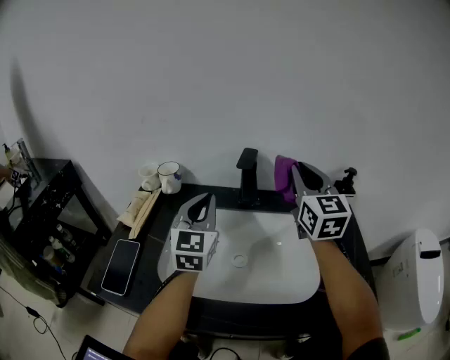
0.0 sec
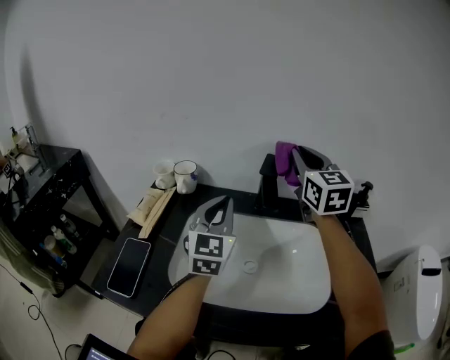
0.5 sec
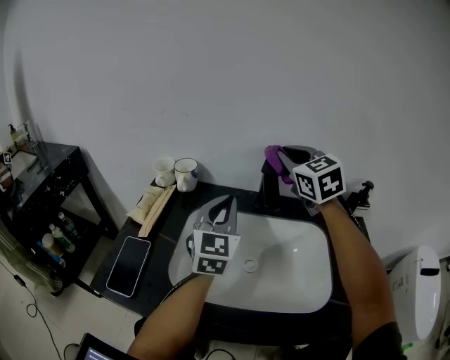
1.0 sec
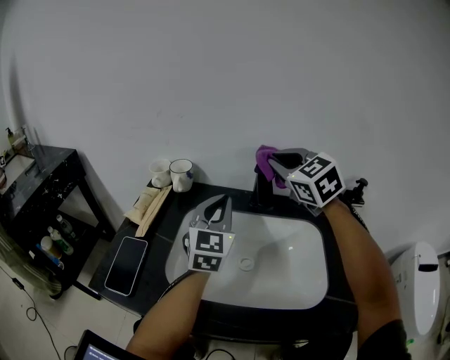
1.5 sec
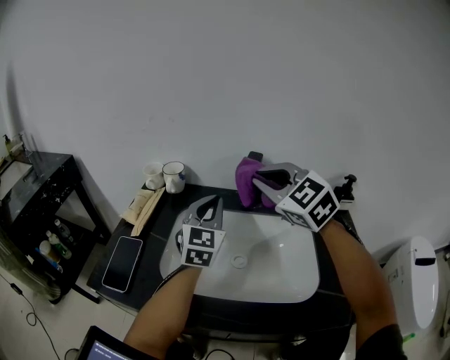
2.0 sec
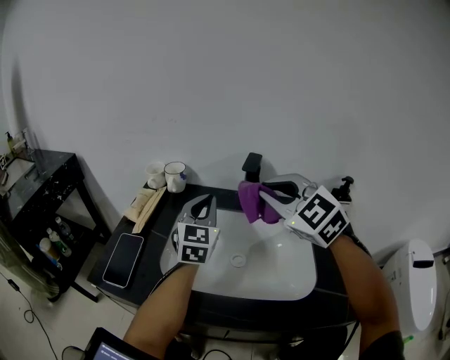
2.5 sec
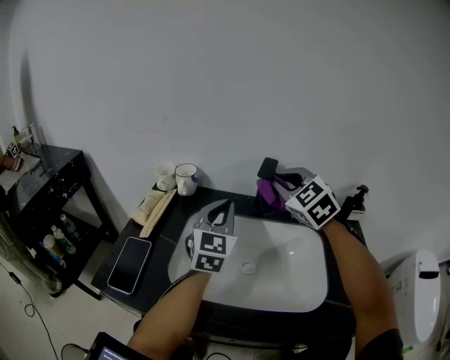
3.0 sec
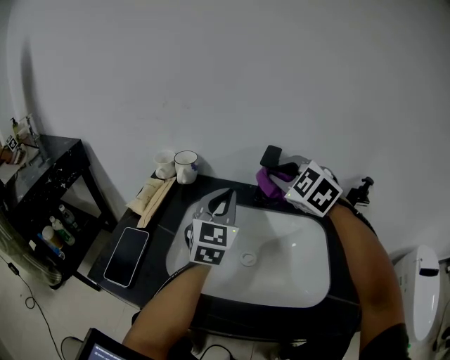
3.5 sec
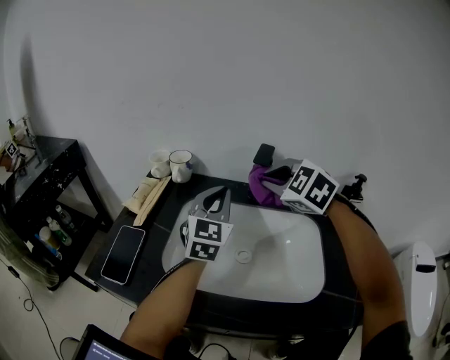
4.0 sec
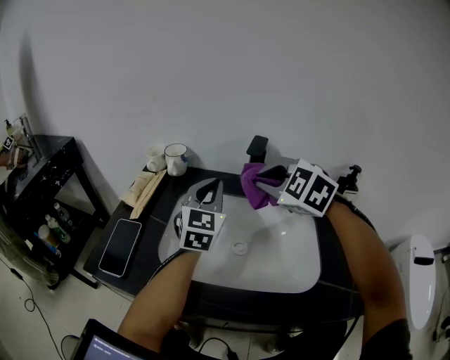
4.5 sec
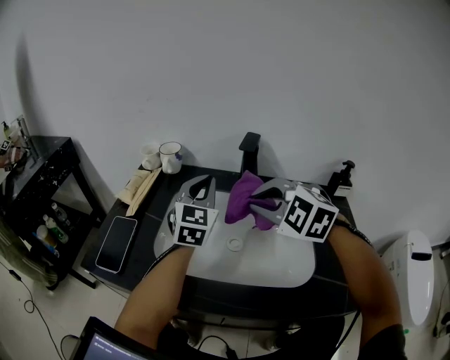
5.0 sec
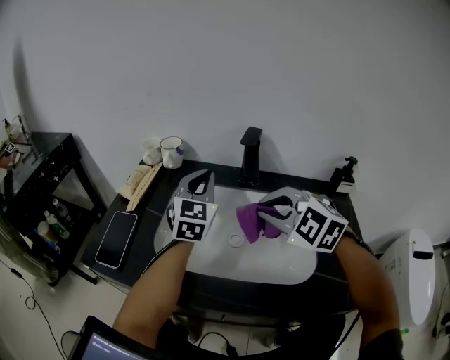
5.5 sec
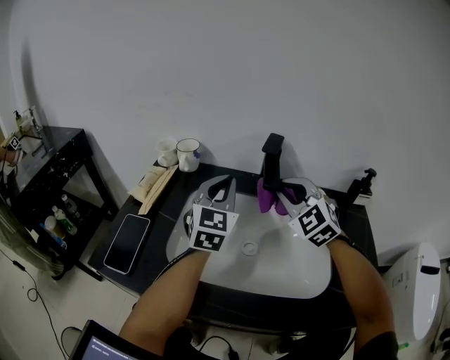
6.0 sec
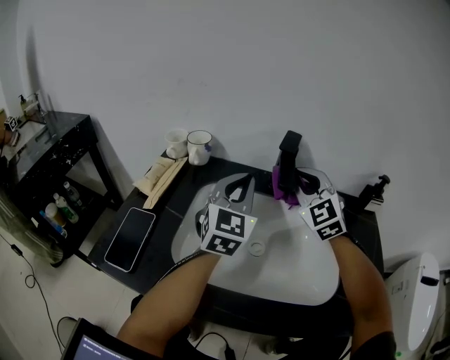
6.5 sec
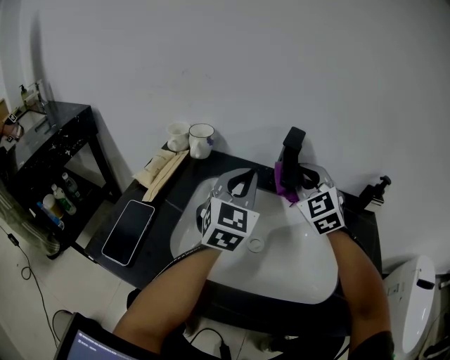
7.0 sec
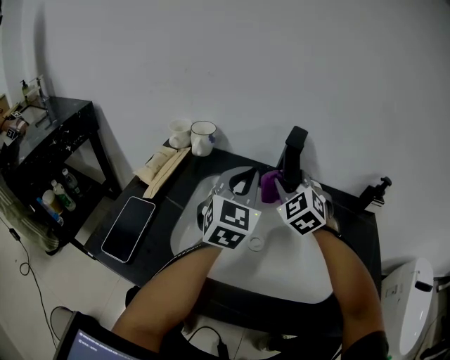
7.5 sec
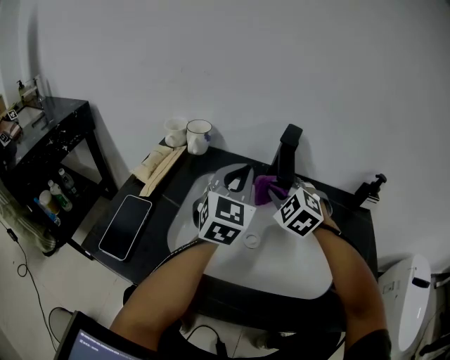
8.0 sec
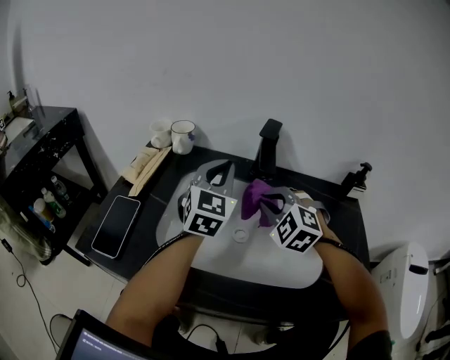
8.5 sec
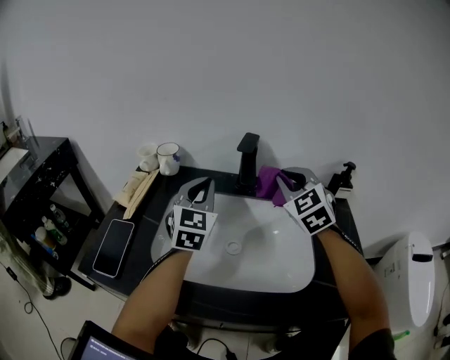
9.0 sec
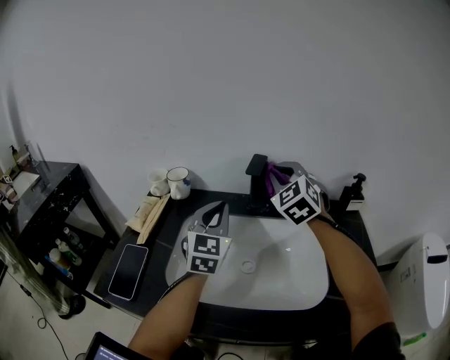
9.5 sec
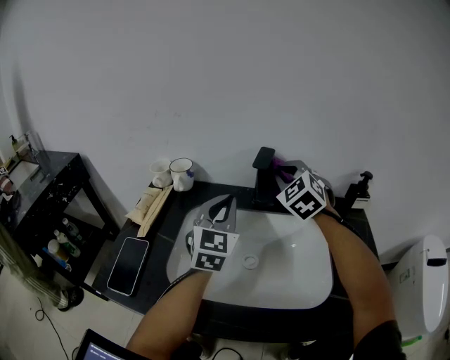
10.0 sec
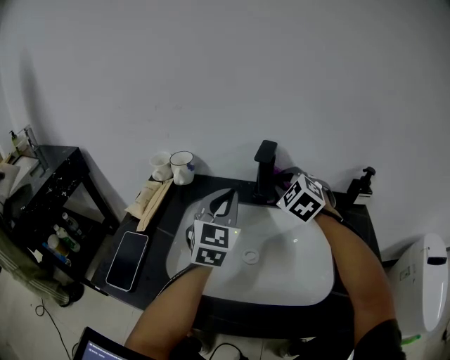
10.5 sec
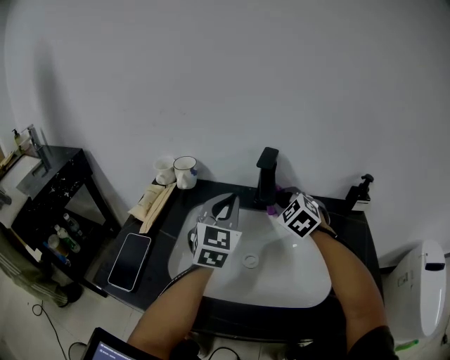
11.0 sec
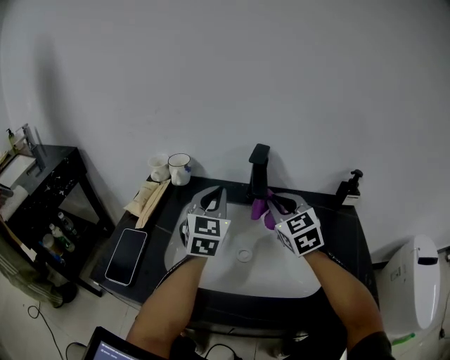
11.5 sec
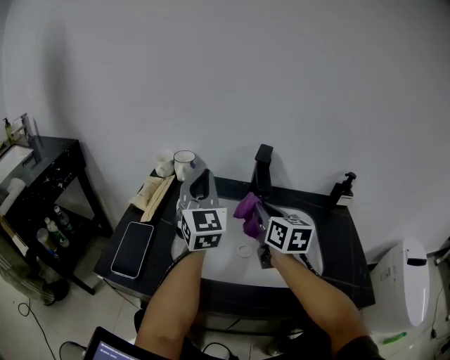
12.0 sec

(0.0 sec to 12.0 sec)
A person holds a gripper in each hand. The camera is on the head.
0.0 sec - 2.0 sec: The right gripper heads to the left, covering about 15 cm, and changes its angle by about 40 degrees.
2.0 sec - 4.0 sec: The right gripper heads downward, covering some 5 cm, moves some 5 cm forward and comes back, and turns by some 20 degrees.
4.0 sec - 6.0 sec: The right gripper goes backward and returns, about 10 cm each way, and swivels about 20 degrees.
6.0 sec - 8.0 sec: The right gripper moves downward, some 10 cm, and swivels some 20 degrees.
8.0 sec - 10.0 sec: The right gripper shifts some 15 cm upward, forward and to the right, and rotates approximately 20 degrees.
10.0 sec - 12.0 sec: The left gripper shifts some 10 cm to the left and upward. The right gripper moves backward and downward, approximately 10 cm, and rotates around the line of its fingers by approximately 60 degrees, clockwise from behind.

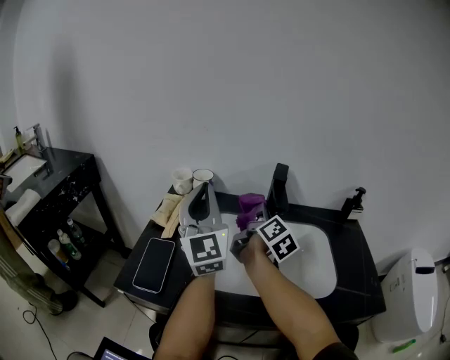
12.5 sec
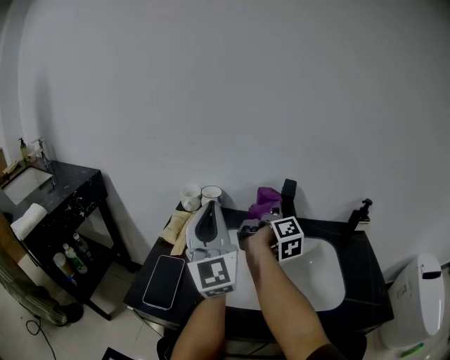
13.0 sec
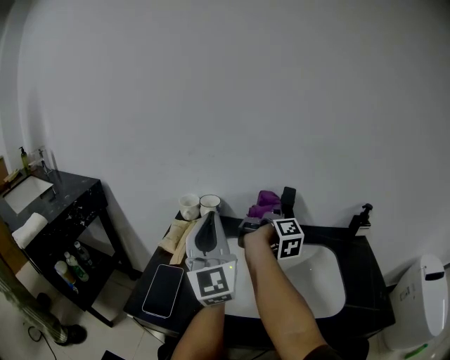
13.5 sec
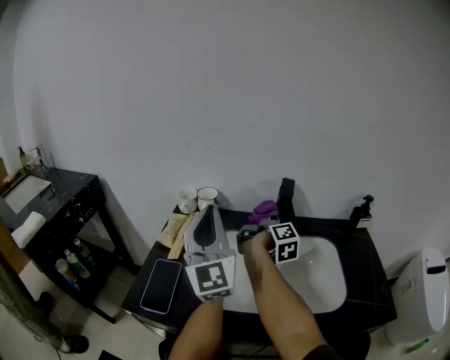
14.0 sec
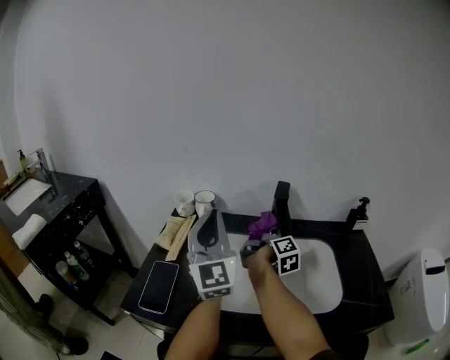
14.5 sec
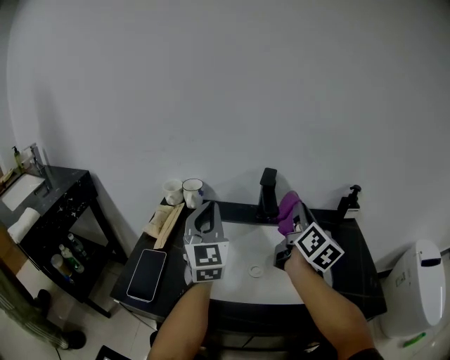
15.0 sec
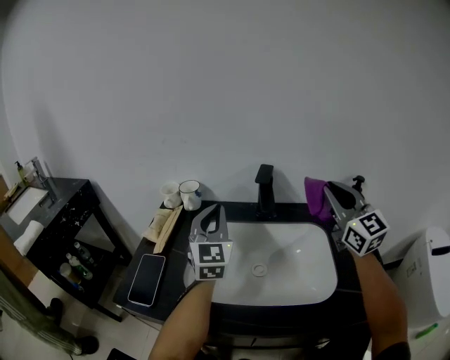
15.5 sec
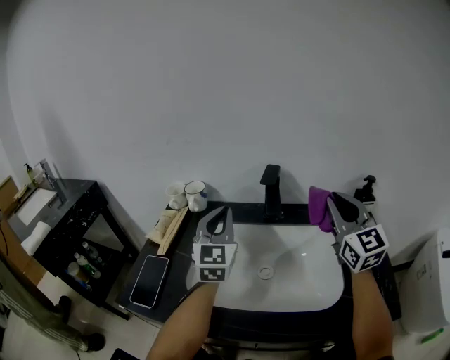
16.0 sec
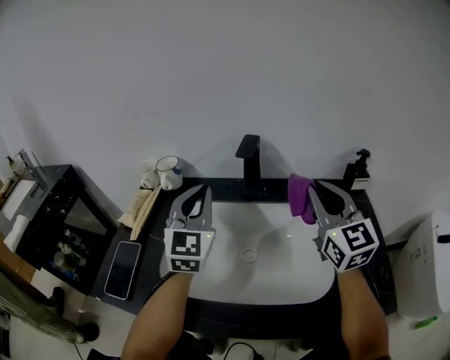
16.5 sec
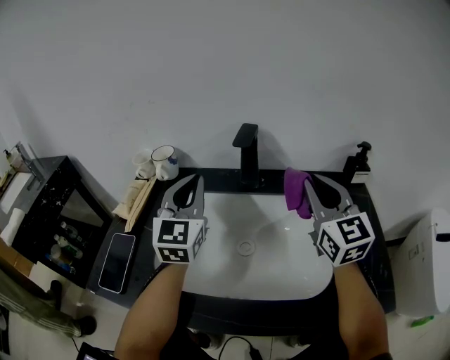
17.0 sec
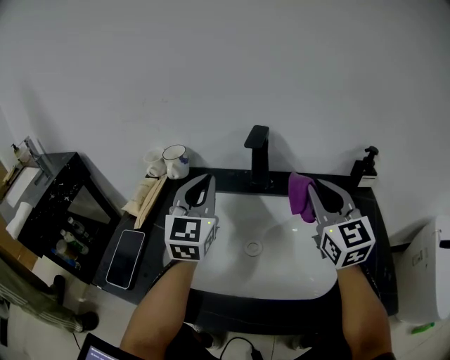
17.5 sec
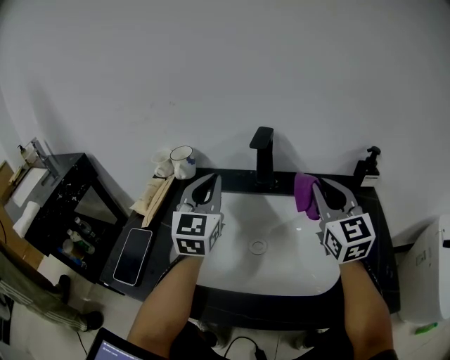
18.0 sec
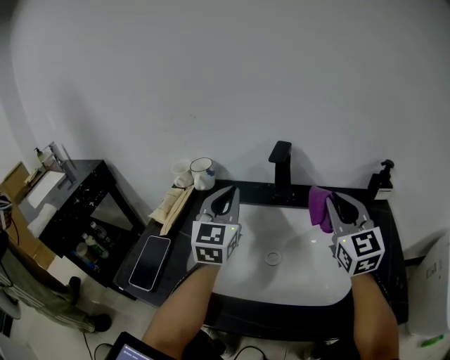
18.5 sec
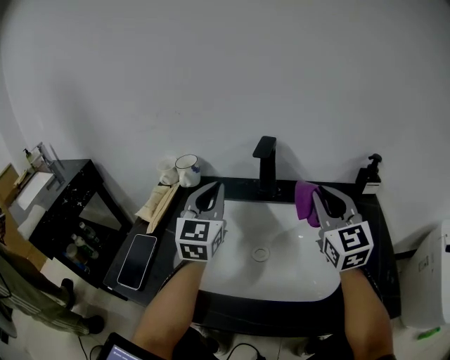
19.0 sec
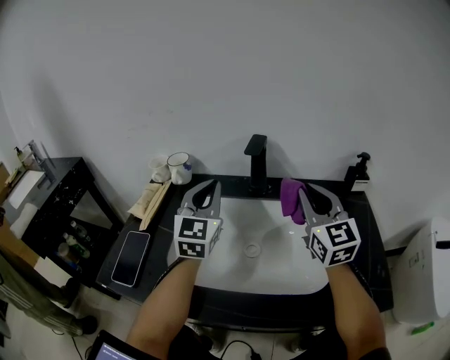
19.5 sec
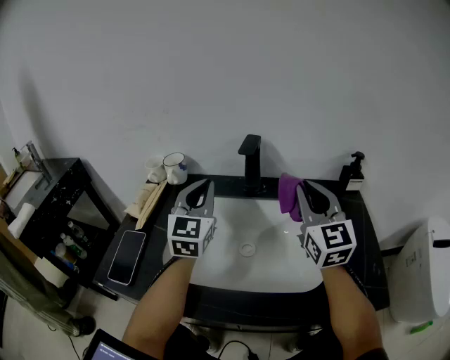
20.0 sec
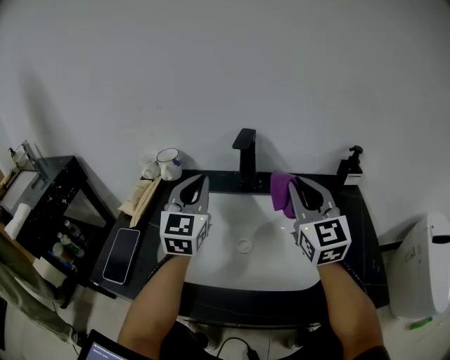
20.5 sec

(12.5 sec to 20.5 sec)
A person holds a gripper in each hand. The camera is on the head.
12.5 sec - 14.5 sec: The right gripper goes about 5 cm to the right, and turns by about 30 degrees.
14.5 sec - 16.5 sec: The left gripper heads to the right, downward and forward, covering roughly 15 cm, and turns by some 20 degrees, while the right gripper goes some 20 cm upward, to the right and backward, and rolls counterclockwise, seen from behind, by roughly 80 degrees.
16.5 sec - 20.5 sec: The grippers make only small movements.

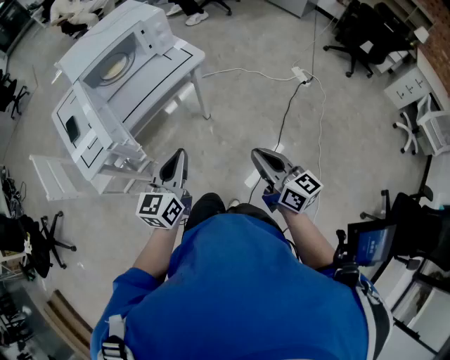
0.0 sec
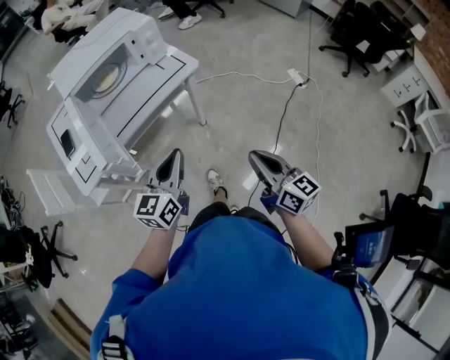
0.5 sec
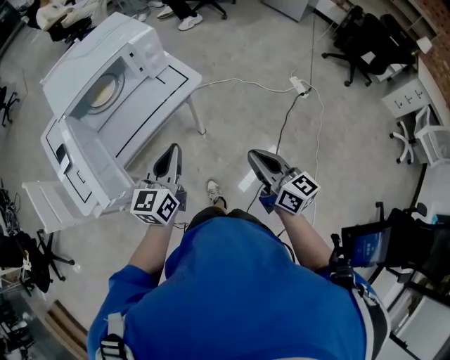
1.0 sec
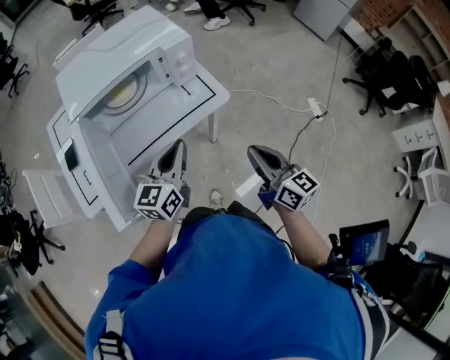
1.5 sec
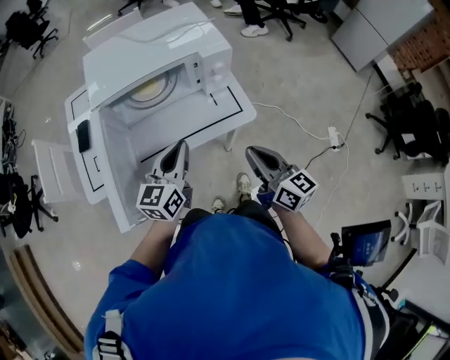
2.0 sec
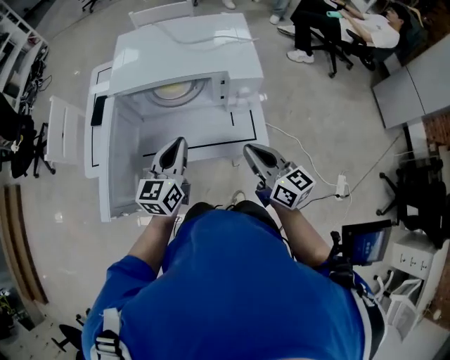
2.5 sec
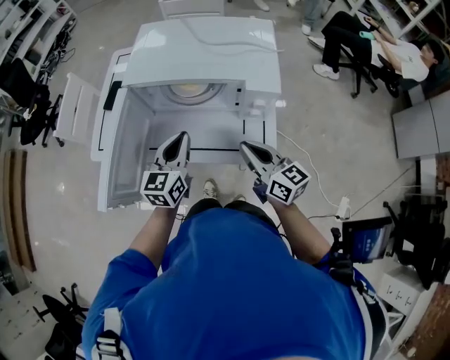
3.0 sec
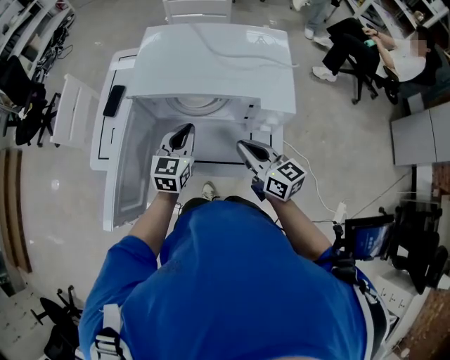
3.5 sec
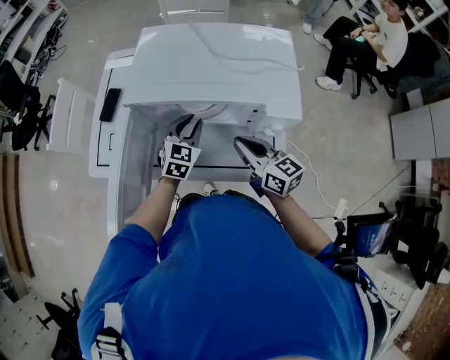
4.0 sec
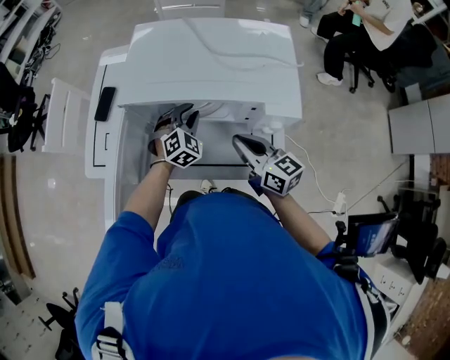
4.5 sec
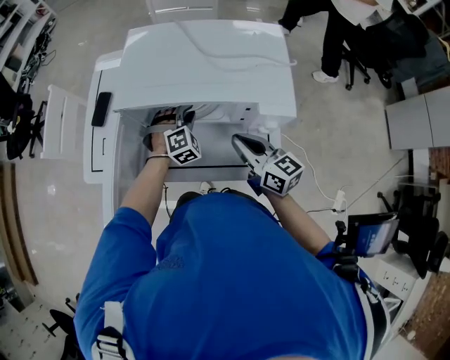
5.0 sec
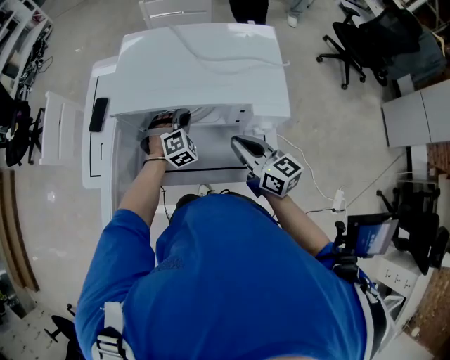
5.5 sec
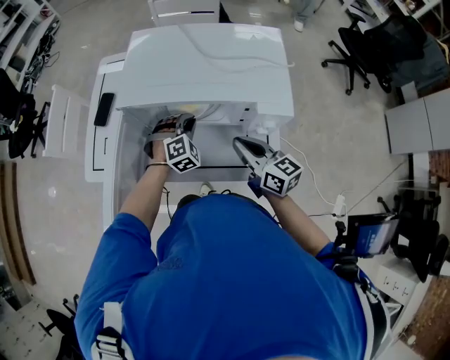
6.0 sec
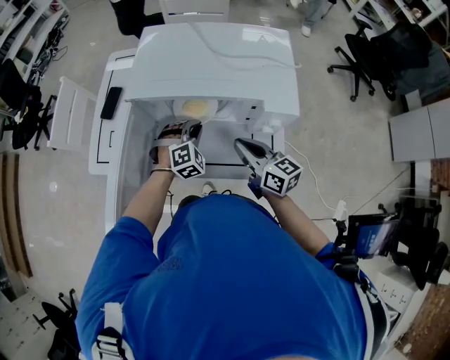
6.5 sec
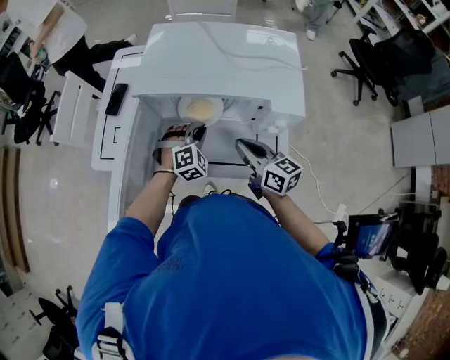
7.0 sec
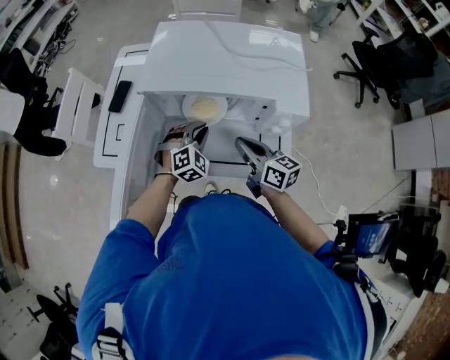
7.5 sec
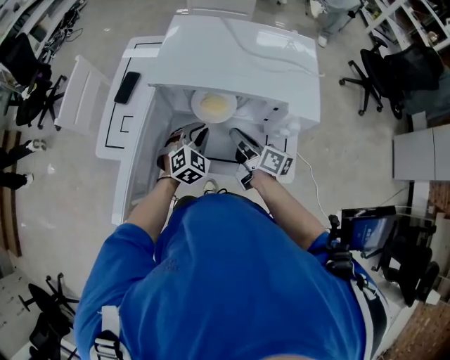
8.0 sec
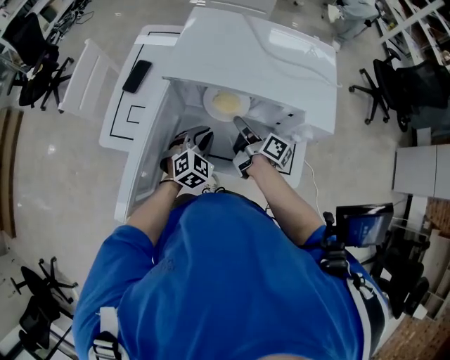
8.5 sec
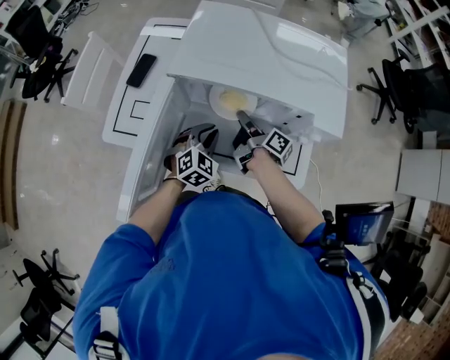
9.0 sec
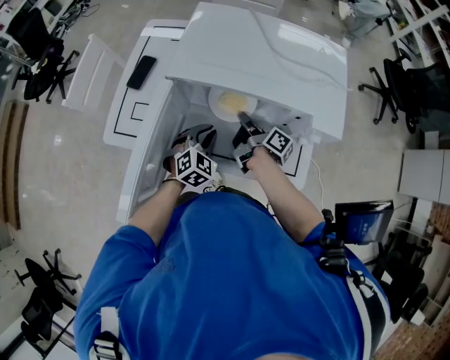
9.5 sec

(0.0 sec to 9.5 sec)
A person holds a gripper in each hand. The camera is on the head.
0.0 sec - 2.0 sec: Both grippers travel together forward, roughly 30 cm. The right gripper turns by about 20 degrees. Meanwhile the left gripper rotates about 20 degrees.
2.0 sec - 4.0 sec: The left gripper changes place by roughly 25 cm, and rotates roughly 40 degrees; the right gripper moves about 25 cm, and changes its angle by about 30 degrees.
4.0 sec - 5.5 sec: The left gripper goes some 5 cm downward, and rolls clockwise, seen from behind, by roughly 50 degrees.
5.5 sec - 7.5 sec: The right gripper shifts by roughly 5 cm. Meanwhile the left gripper shifts some 5 cm backward.
7.5 sec - 9.5 sec: The left gripper goes about 5 cm to the left, and turns by about 20 degrees; the right gripper heads forward and downward, covering approximately 15 cm, rolls clockwise, seen from behind, by roughly 50 degrees, and opens and closes again.
